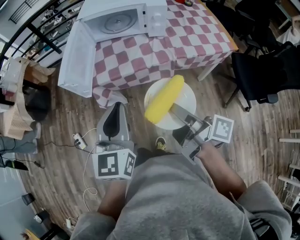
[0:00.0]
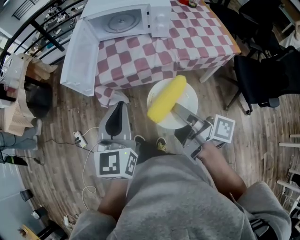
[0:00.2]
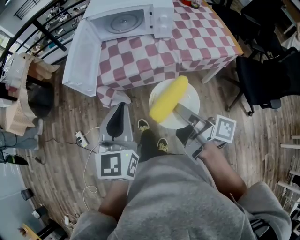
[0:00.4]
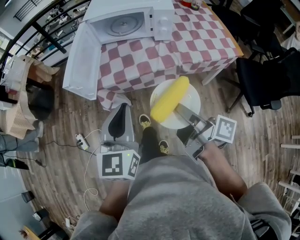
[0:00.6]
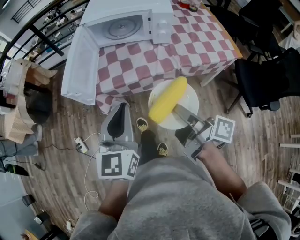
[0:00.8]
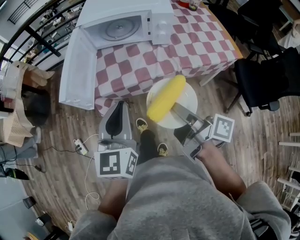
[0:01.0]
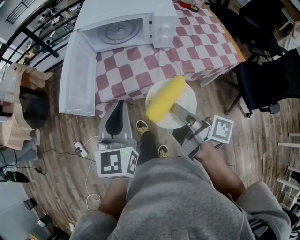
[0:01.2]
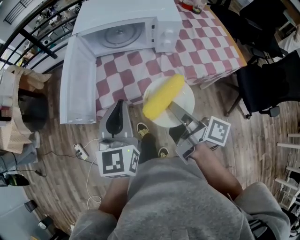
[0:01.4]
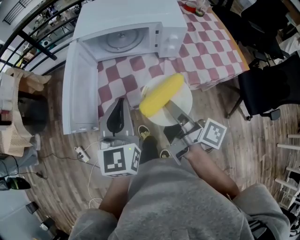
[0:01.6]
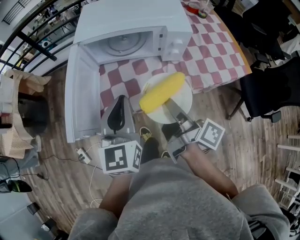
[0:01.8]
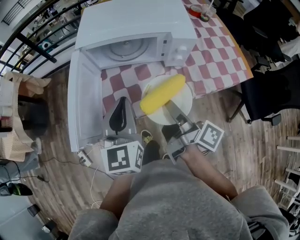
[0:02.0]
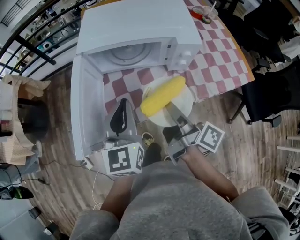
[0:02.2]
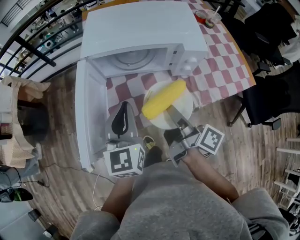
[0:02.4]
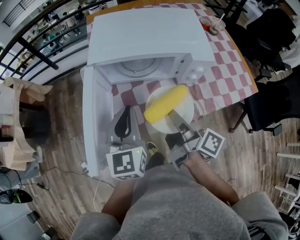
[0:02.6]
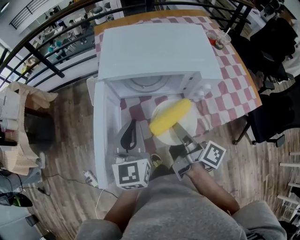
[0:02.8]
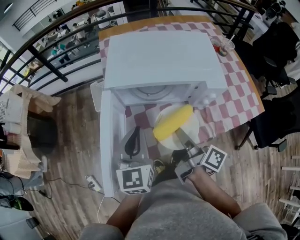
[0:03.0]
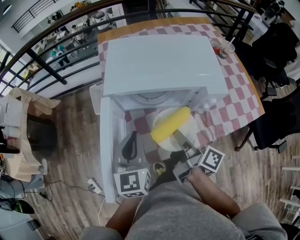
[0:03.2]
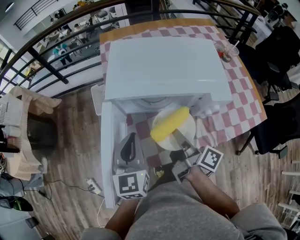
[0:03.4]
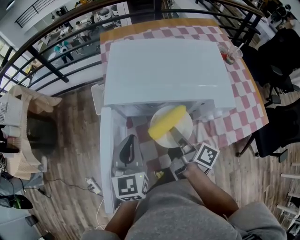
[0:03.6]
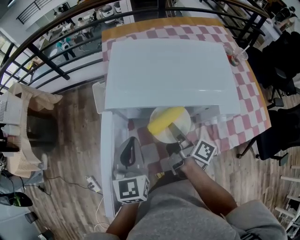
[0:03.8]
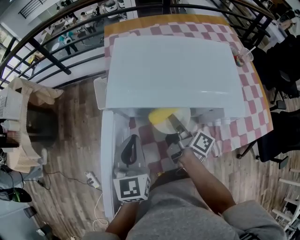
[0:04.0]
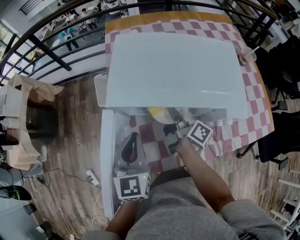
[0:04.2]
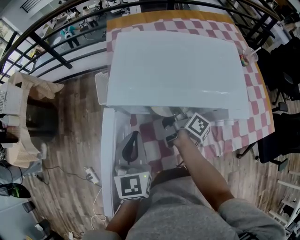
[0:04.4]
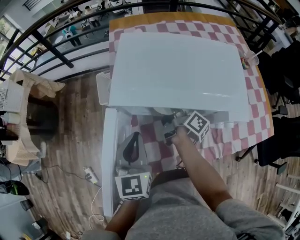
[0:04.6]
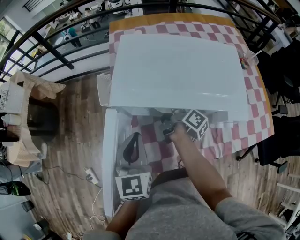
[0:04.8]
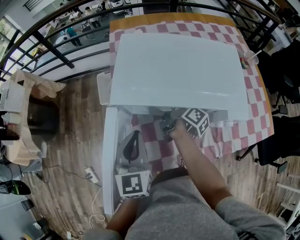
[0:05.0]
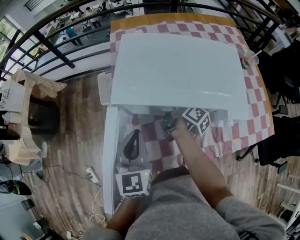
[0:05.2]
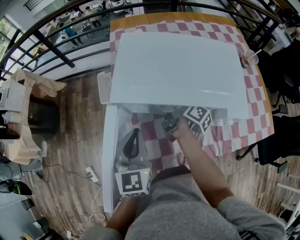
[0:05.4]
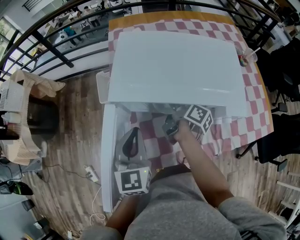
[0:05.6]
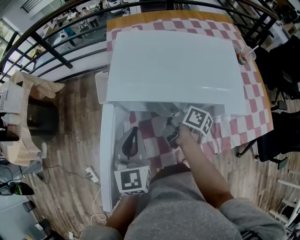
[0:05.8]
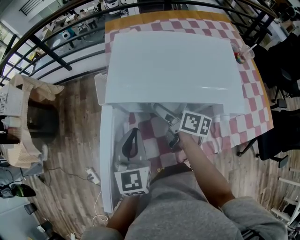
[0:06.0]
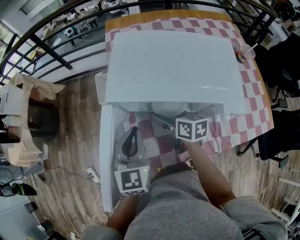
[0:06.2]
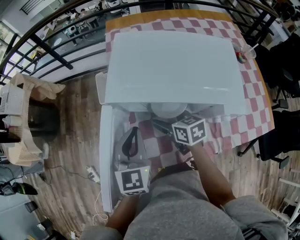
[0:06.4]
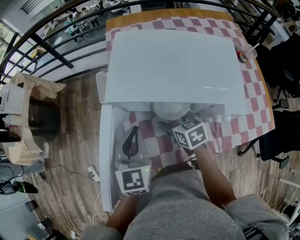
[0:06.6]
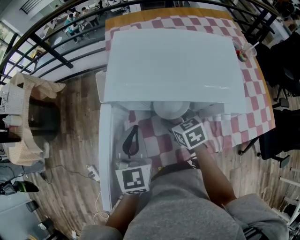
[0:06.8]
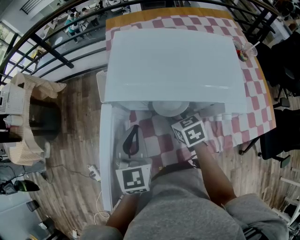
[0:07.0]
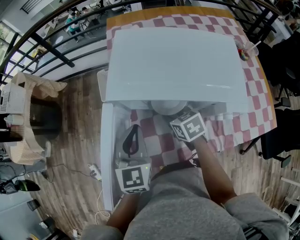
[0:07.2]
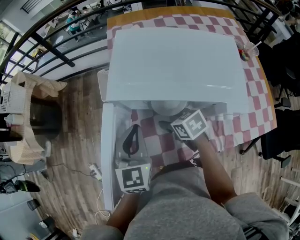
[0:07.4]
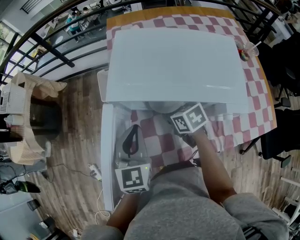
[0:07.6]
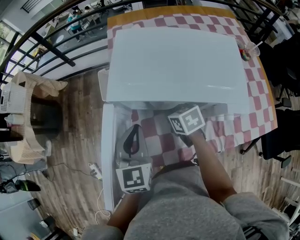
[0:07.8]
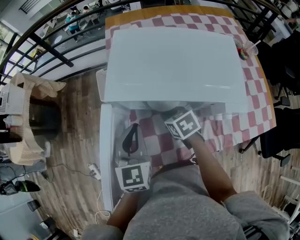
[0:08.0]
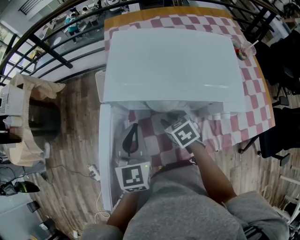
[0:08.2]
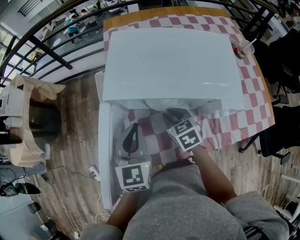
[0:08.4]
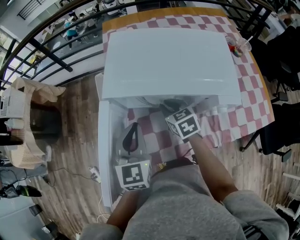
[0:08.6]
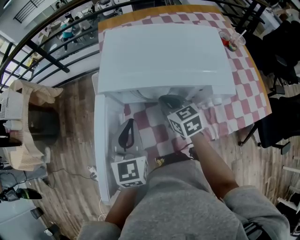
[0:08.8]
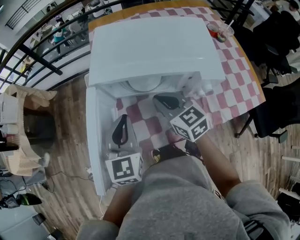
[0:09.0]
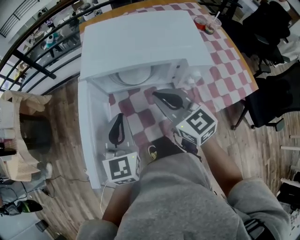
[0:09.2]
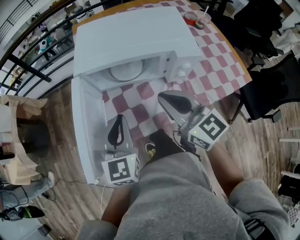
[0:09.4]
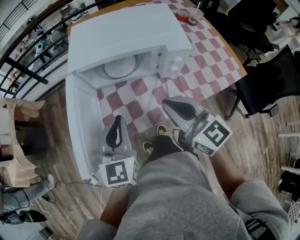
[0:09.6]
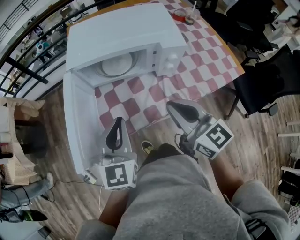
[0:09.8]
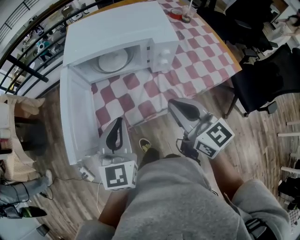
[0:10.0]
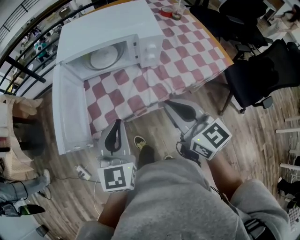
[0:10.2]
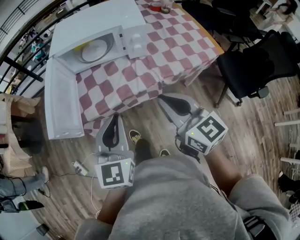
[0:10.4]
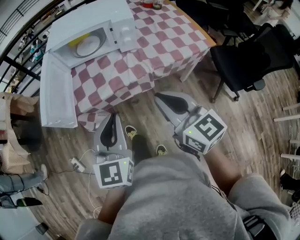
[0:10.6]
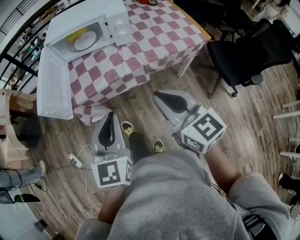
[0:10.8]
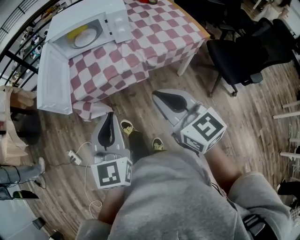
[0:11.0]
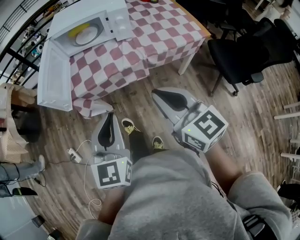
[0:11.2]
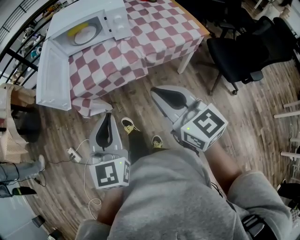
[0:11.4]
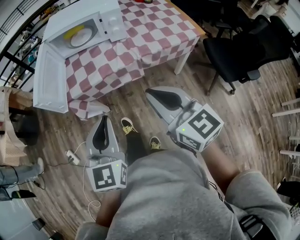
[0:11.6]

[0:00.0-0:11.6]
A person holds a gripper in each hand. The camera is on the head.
0:00.0 to 0:01.4: The two grippers go about 15 cm forward.
0:01.4 to 0:02.8: The two grippers go roughly 20 cm forward.
0:02.8 to 0:04.4: The right gripper goes roughly 25 cm forward. The left gripper travels forward by about 10 cm.
0:04.4 to 0:05.8: The right gripper opens its fingers.
0:05.8 to 0:07.2: The right gripper moves some 5 cm, rolls counterclockwise, seen from behind, by about 60 degrees, and closes.
0:07.2 to 0:08.8: The right gripper travels upward by about 5 cm, and swivels roughly 20 degrees.
0:08.8 to 0:10.2: The left gripper shifts about 25 cm backward. The right gripper heads backward and upward, covering some 35 cm, and rotates roughly 20 degrees.
0:10.2 to 0:11.6: The grippers both shift backward by about 20 cm.

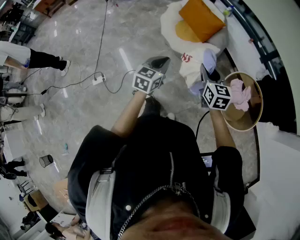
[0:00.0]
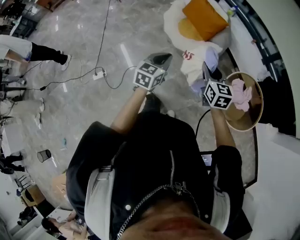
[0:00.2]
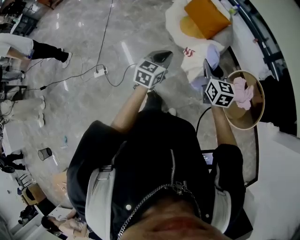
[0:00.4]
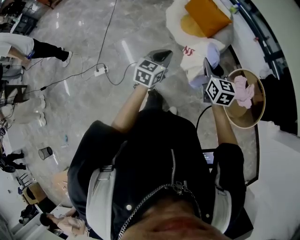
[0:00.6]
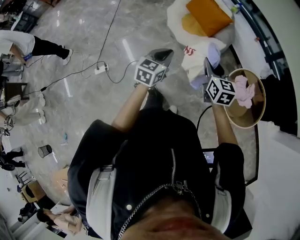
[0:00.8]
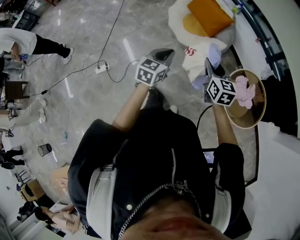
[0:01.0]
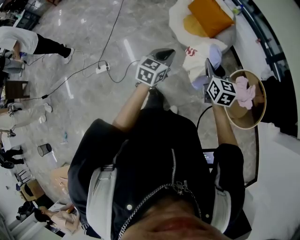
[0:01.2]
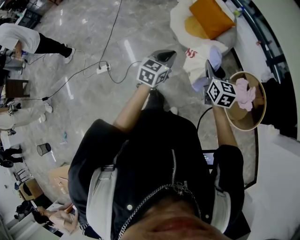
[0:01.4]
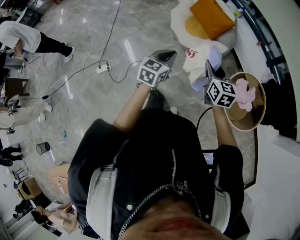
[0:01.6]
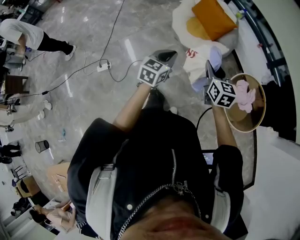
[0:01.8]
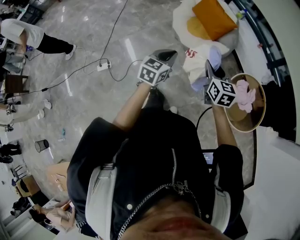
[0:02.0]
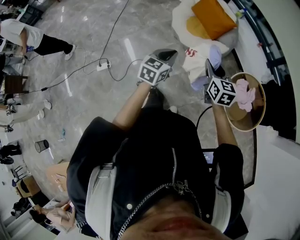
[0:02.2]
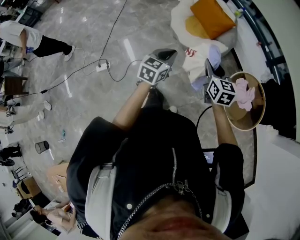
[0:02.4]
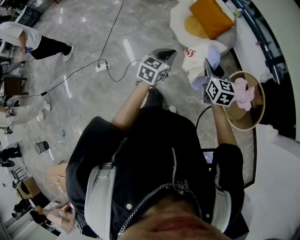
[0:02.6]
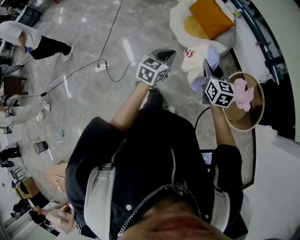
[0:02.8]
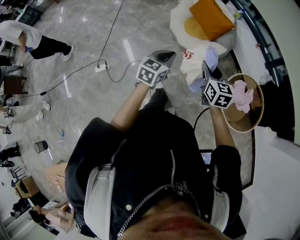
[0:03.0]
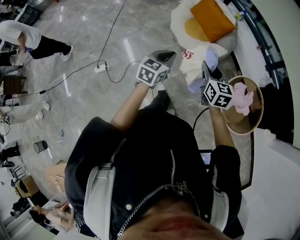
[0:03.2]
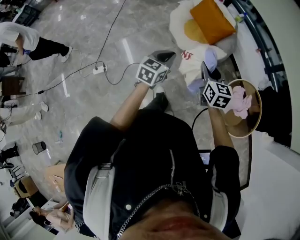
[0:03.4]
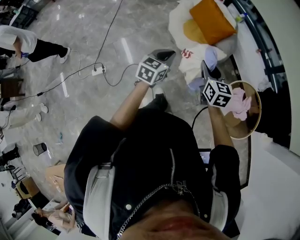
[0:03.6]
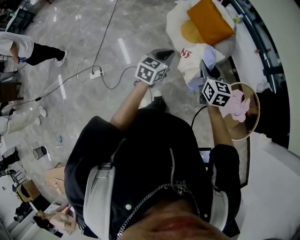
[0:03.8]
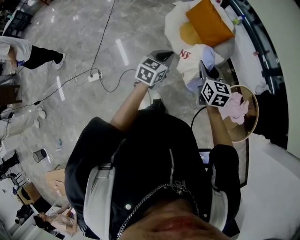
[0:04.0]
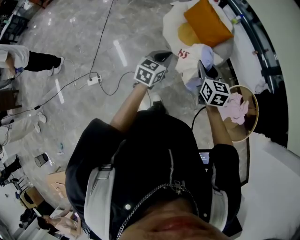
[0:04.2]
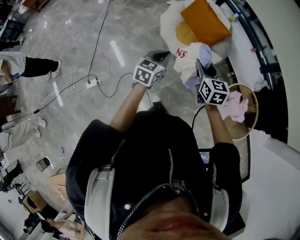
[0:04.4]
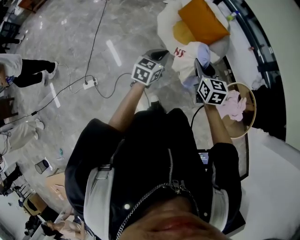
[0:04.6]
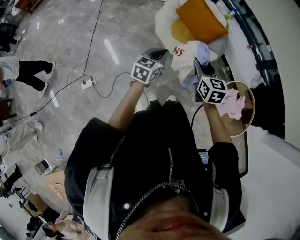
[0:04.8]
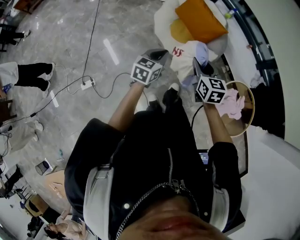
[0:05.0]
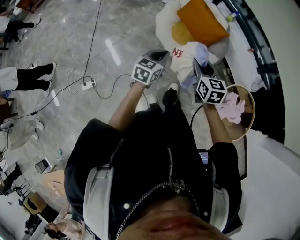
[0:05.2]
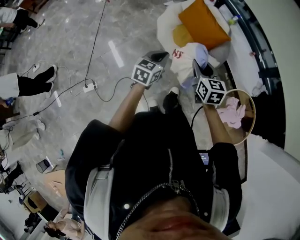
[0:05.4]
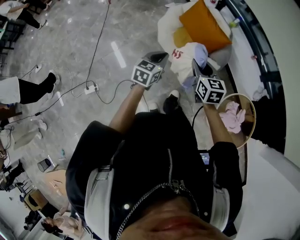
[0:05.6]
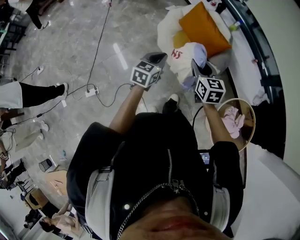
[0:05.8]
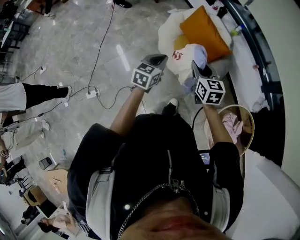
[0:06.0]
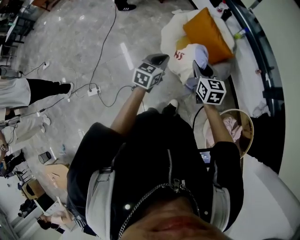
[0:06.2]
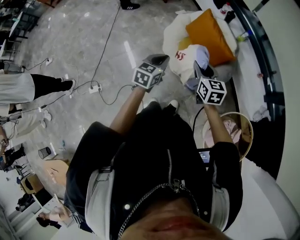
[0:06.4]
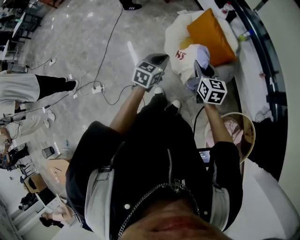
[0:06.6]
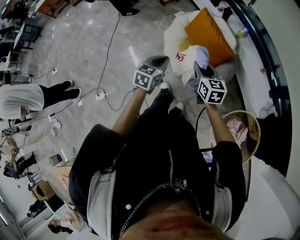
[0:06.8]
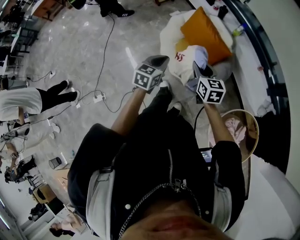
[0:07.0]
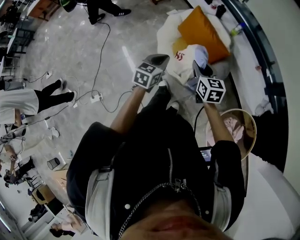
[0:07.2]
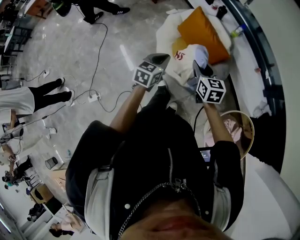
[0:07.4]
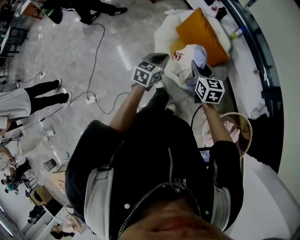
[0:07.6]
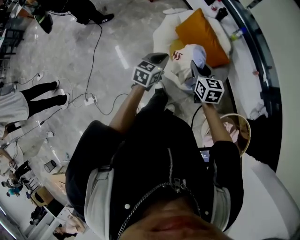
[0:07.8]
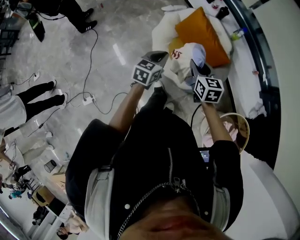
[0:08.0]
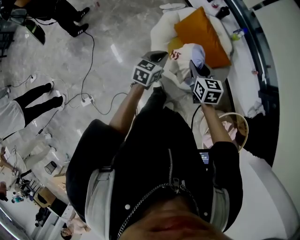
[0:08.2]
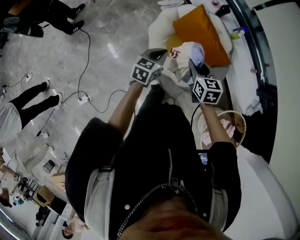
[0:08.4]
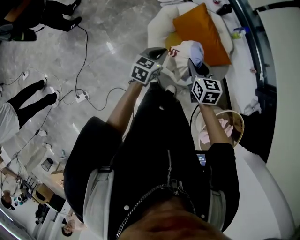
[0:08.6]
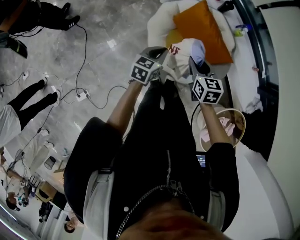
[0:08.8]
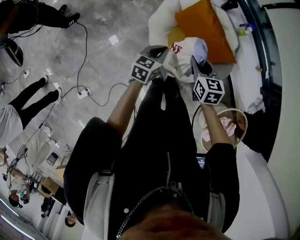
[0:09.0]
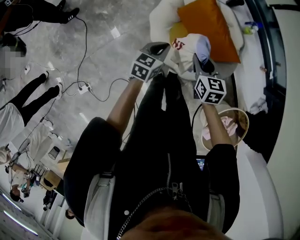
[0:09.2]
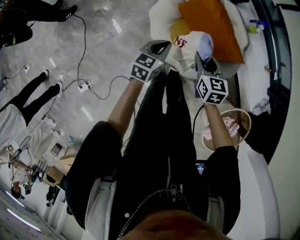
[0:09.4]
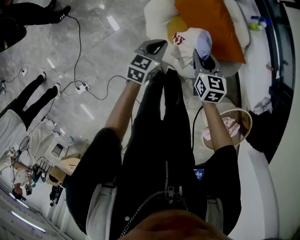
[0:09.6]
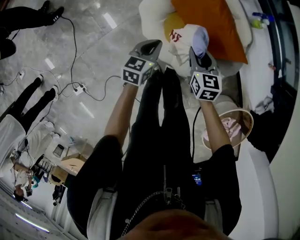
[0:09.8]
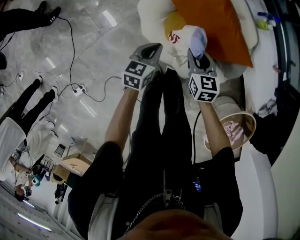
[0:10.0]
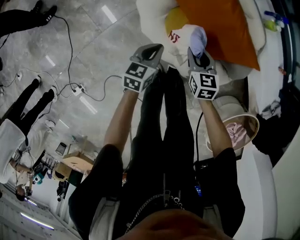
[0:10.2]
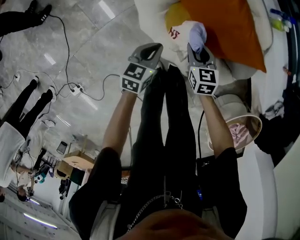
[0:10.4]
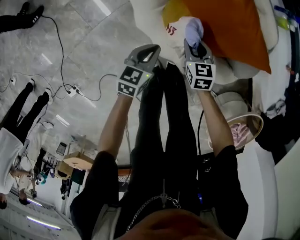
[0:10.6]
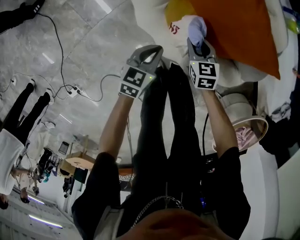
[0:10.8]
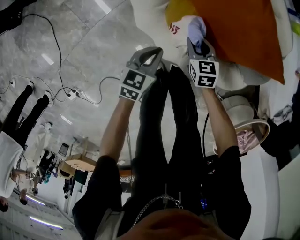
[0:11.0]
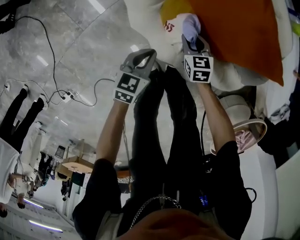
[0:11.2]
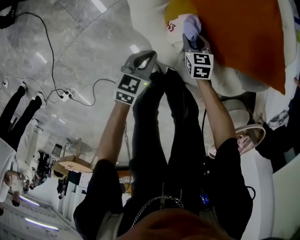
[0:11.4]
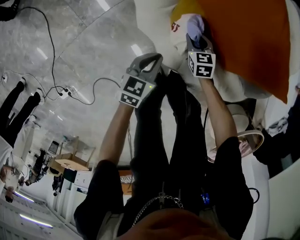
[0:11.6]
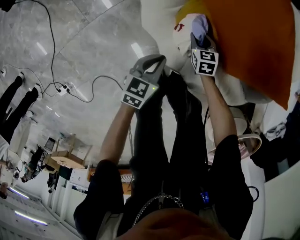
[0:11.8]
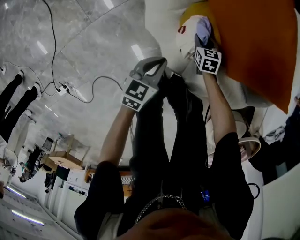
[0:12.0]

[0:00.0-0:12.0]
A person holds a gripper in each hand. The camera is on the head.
0:00.0 to 0:01.6: The grippers move only a little.
0:01.6 to 0:03.0: The two grippers keep their place.
0:03.0 to 0:04.4: The right gripper shifts some 20 cm forward and to the left. The left gripper goes approximately 20 cm forward.
0:04.4 to 0:06.0: The two grippers go about 20 cm forward.
0:06.0 to 0:07.6: Both grippers travel together forward, some 10 cm.
0:07.6 to 0:09.0: The right gripper travels forward, to the left and downward by about 15 cm. Meanwhile the left gripper shifts roughly 20 cm forward, downward and to the left.
0:09.0 to 0:10.4: The grippers both shift downward by roughly 30 cm.
0:10.4 to 0:12.0: The right gripper goes roughly 30 cm downward. The left gripper is displaced downward by roughly 15 cm.
